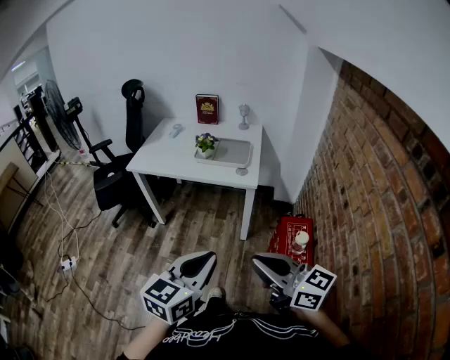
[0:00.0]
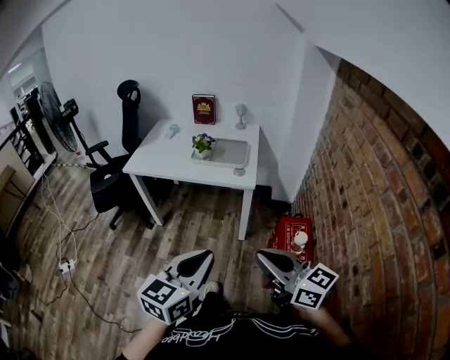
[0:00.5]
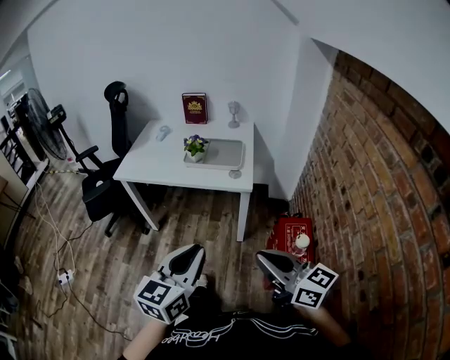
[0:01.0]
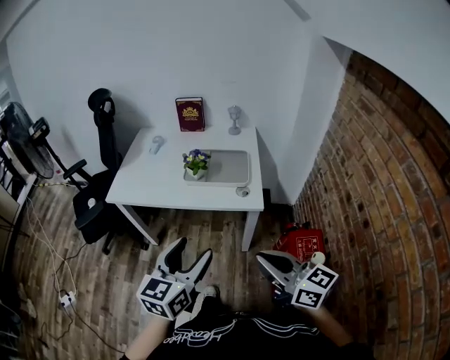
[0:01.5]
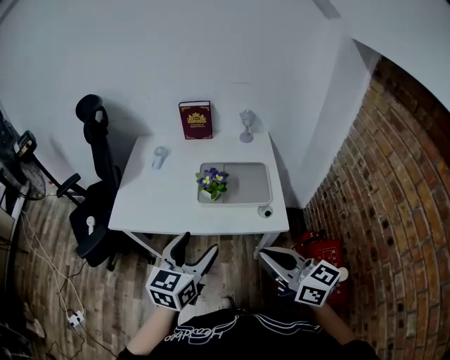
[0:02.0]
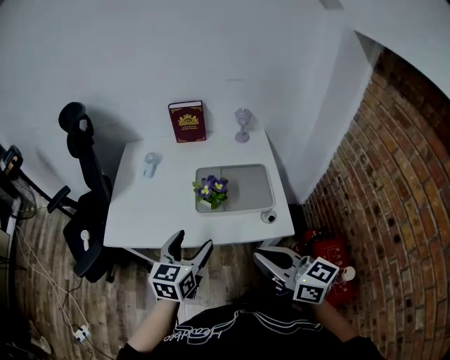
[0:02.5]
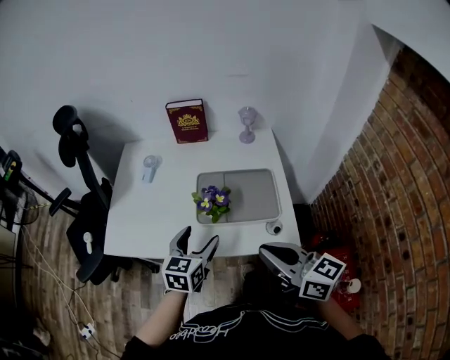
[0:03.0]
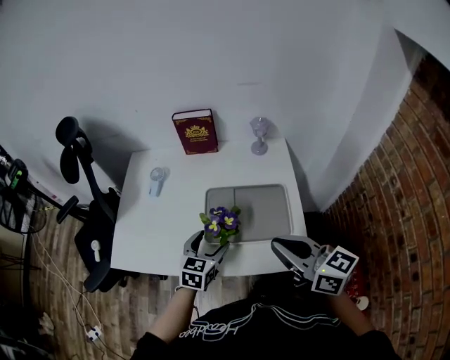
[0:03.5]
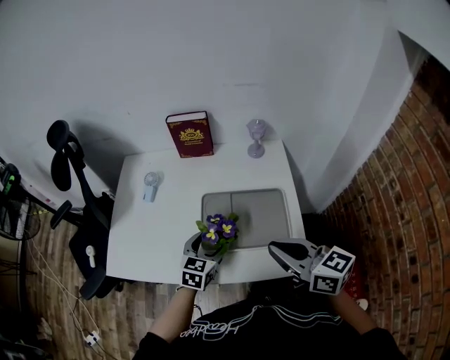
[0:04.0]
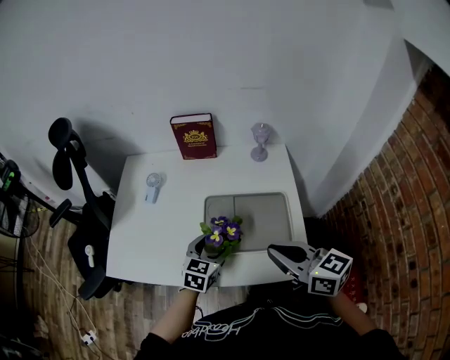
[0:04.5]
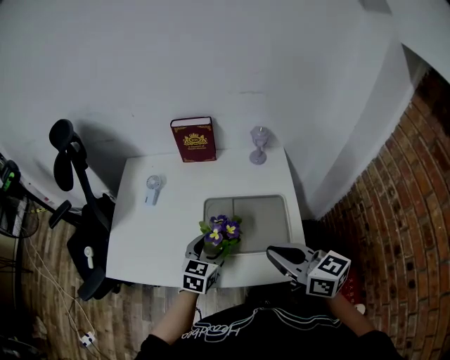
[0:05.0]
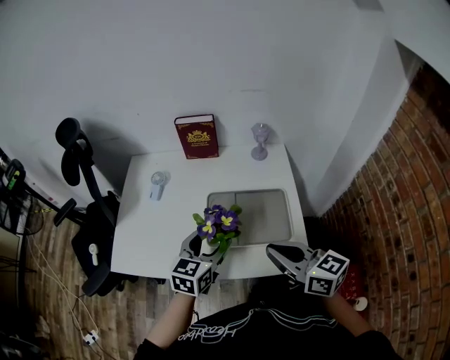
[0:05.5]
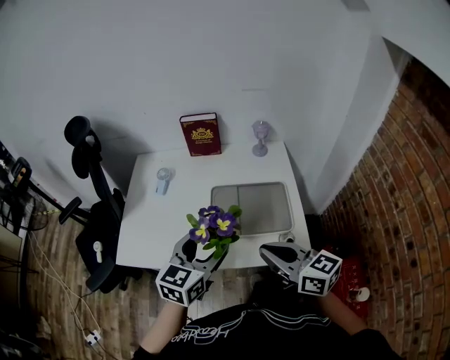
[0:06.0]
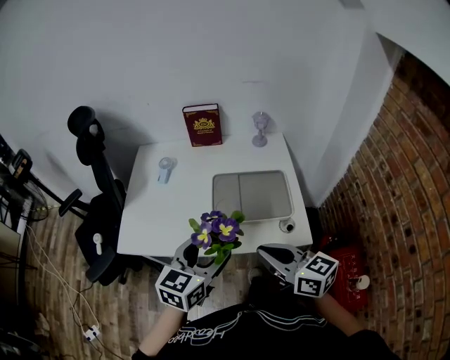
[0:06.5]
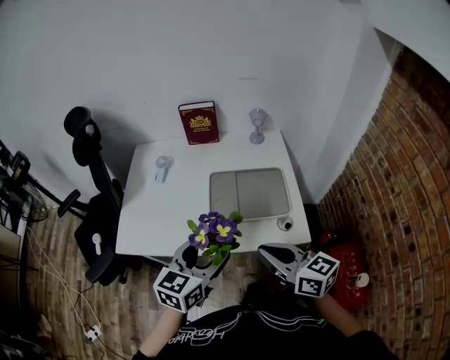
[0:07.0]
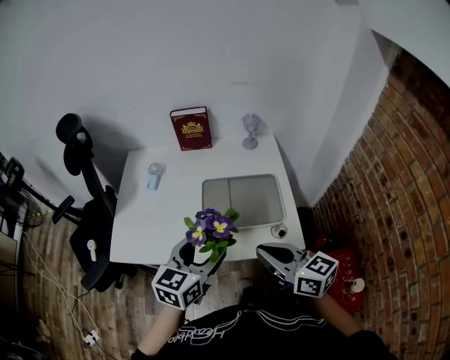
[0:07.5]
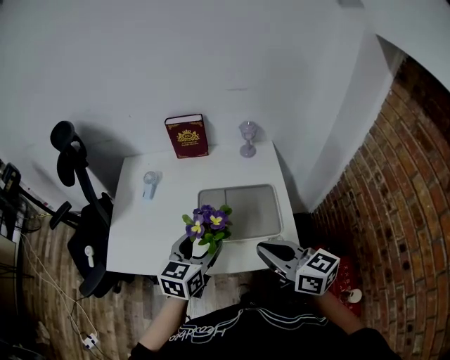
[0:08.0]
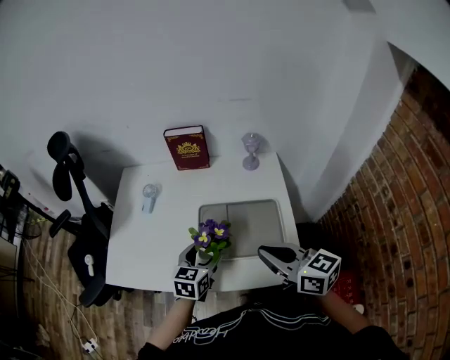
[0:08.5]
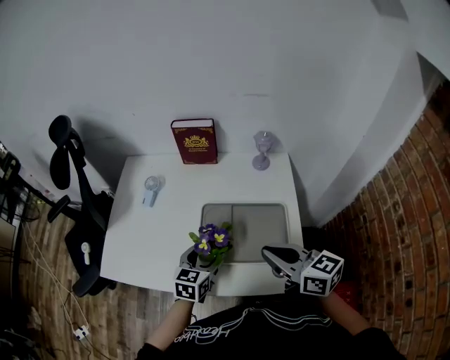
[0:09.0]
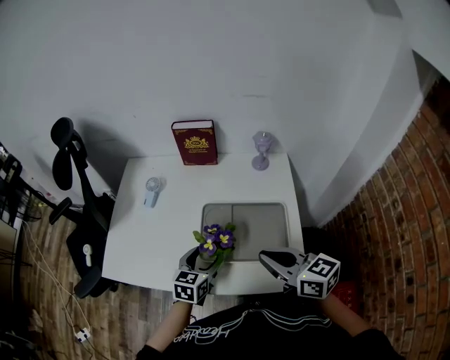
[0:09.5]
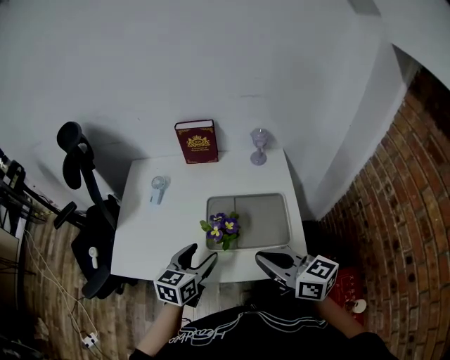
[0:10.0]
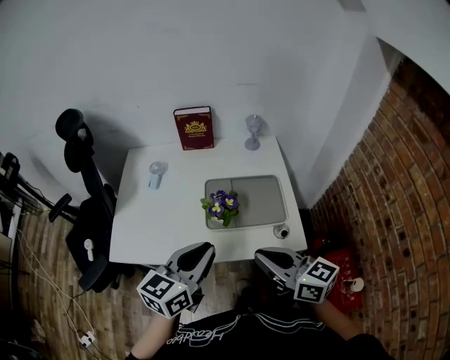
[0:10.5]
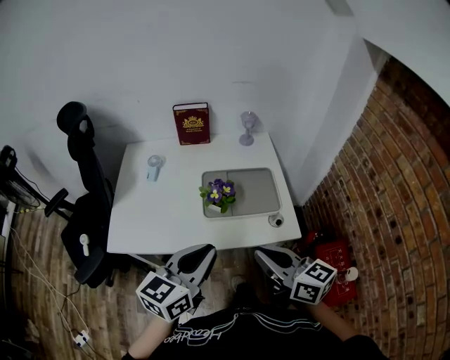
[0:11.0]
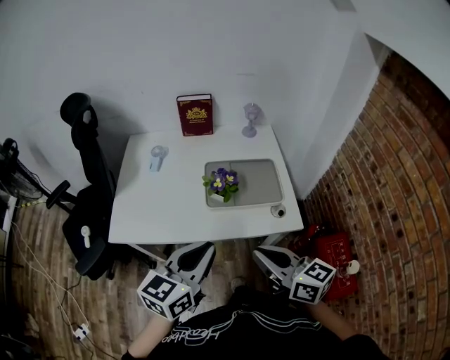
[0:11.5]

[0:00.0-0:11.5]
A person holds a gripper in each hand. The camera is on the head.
0:00.0 to 0:02.0: Both grippers travel together forward, roughly 40 cm. The left gripper opens up.
0:02.0 to 0:04.0: The right gripper travels forward by roughly 20 cm. The left gripper moves forward and downward, approximately 30 cm.
0:04.0 to 0:06.0: The left gripper is displaced upward and backward by approximately 20 cm; the right gripper travels backward and to the left by roughly 10 cm.
0:07.5 to 0:09.5: The left gripper goes roughly 20 cm downward and forward. The right gripper is displaced forward by about 10 cm.
0:09.5 to 0:11.5: The right gripper goes about 20 cm backward and to the left; the left gripper goes some 30 cm backward and upward, swivels some 30 degrees, and closes up.

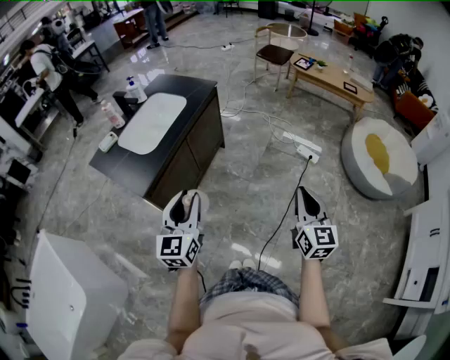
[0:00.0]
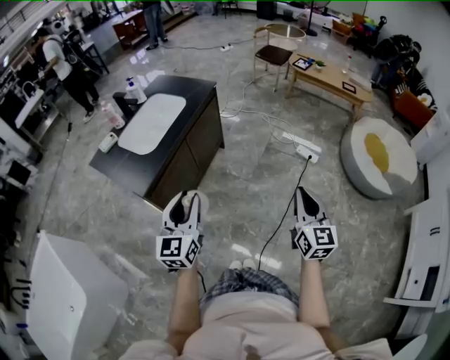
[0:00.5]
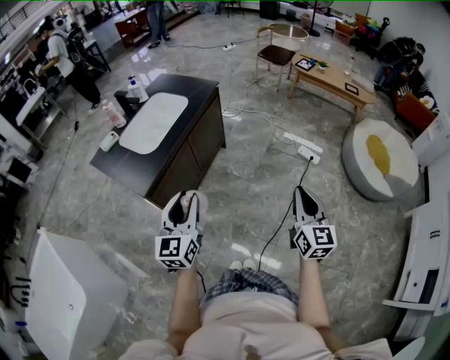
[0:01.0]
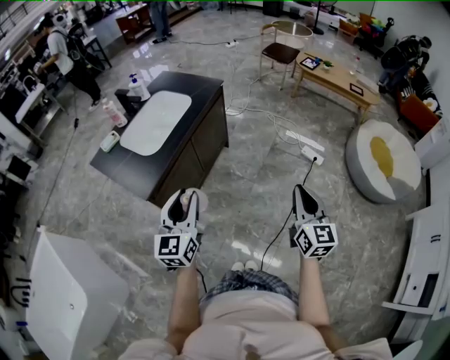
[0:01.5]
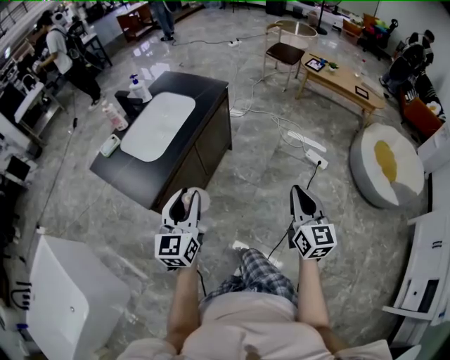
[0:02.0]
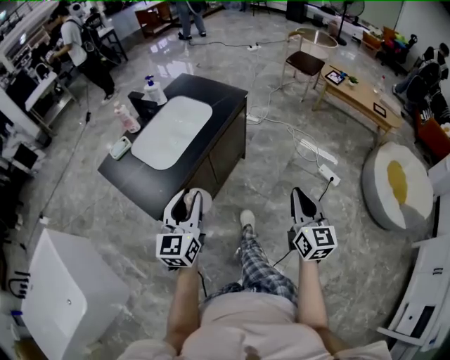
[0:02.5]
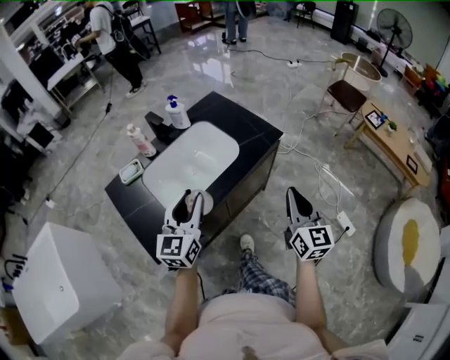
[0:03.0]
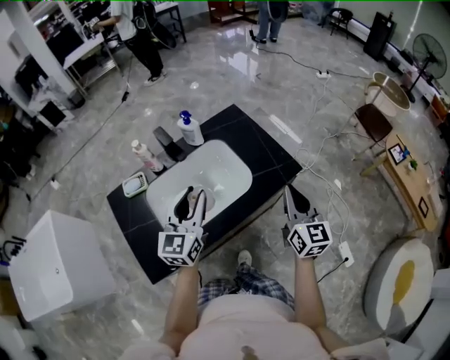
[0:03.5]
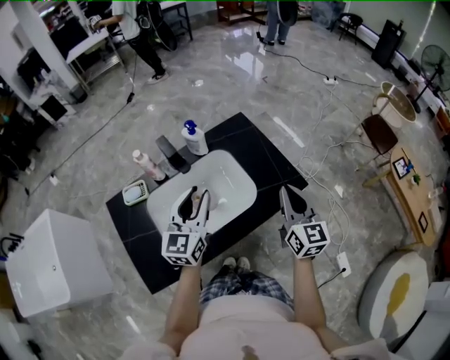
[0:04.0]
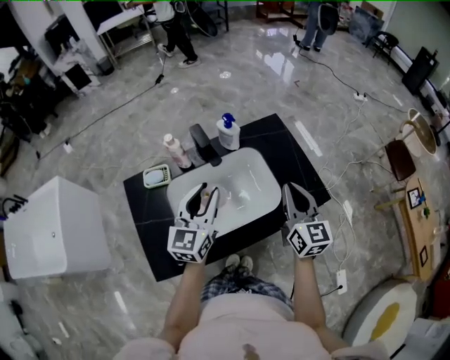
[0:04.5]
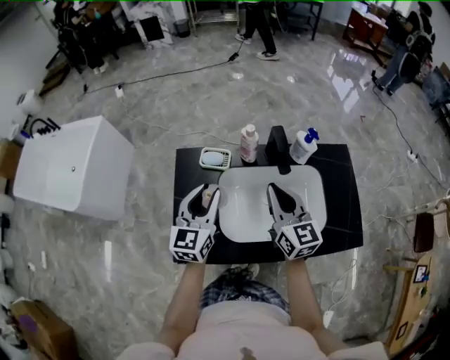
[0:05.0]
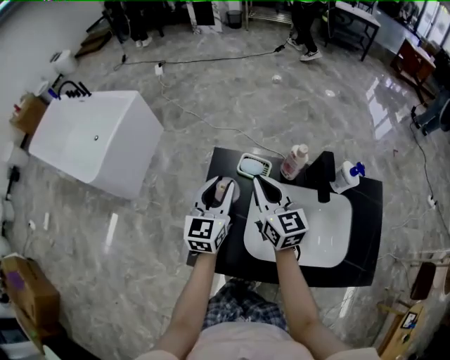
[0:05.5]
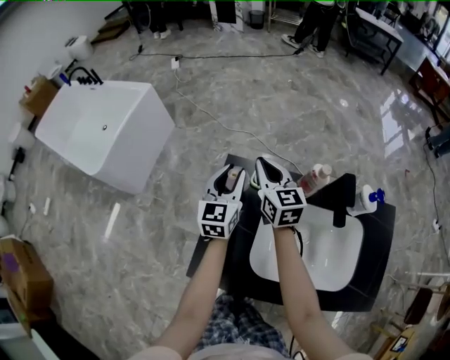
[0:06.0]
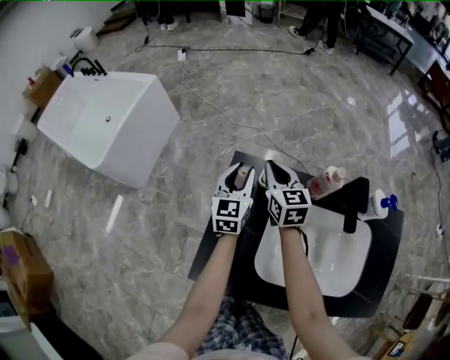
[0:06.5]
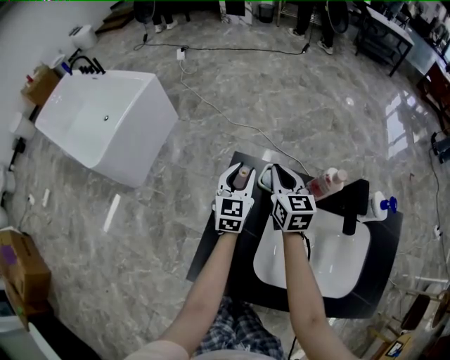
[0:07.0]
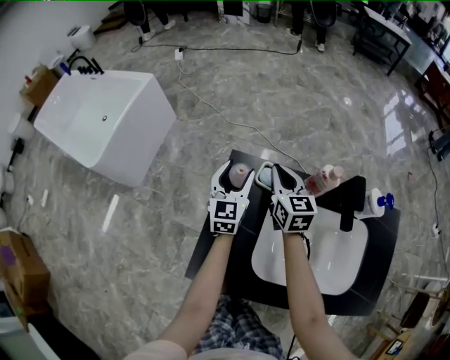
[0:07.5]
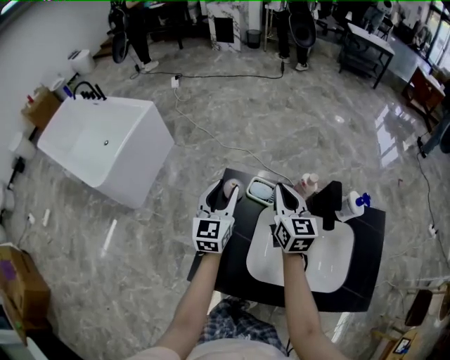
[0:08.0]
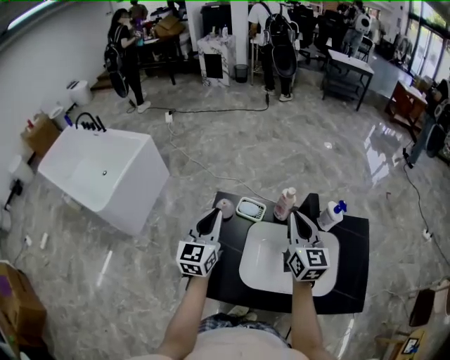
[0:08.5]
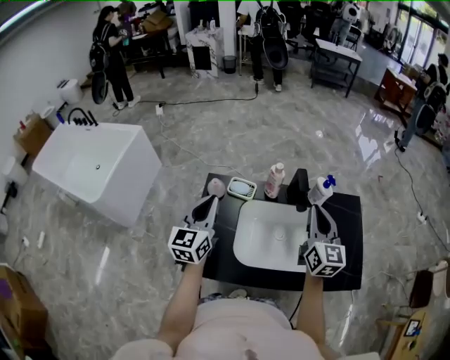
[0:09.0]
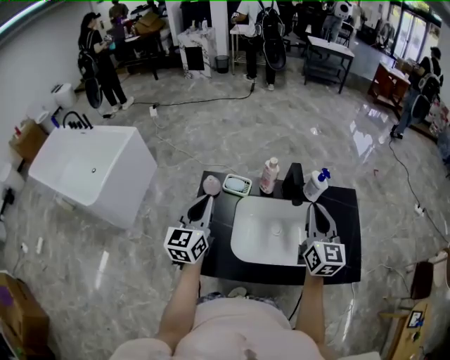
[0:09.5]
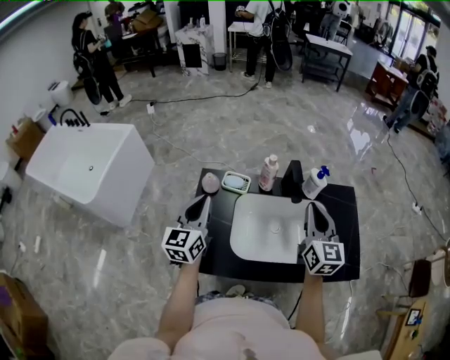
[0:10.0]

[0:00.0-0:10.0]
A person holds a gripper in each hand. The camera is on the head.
0:00.0 to 0:02.0: Both grippers travel together forward and to the left, approximately 10 cm.
0:02.0 to 0:04.0: The two grippers travel together, some 60 cm. The right gripper swivels some 30 degrees. Meanwhile the left gripper rotates approximately 20 degrees.
0:04.0 to 0:06.0: Both grippers are carried approximately 60 cm. The left gripper turns by approximately 50 degrees; the right gripper changes its angle by about 60 degrees.
0:06.0 to 0:08.0: The left gripper shifts by approximately 5 cm; the right gripper is displaced to the right and backward by some 10 cm.
0:08.0 to 0:10.0: The left gripper is displaced backward and upward by about 15 cm, and closes. The right gripper heads backward, to the right and upward, covering about 30 cm.

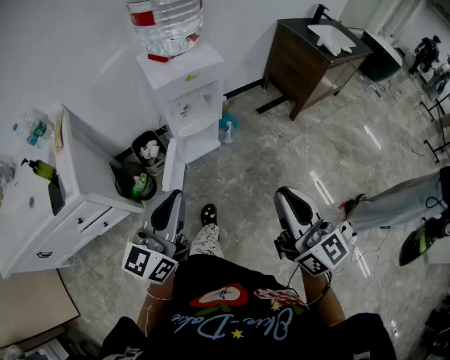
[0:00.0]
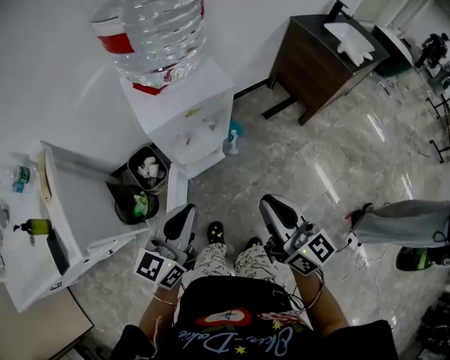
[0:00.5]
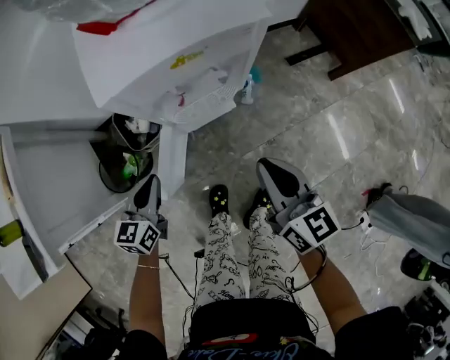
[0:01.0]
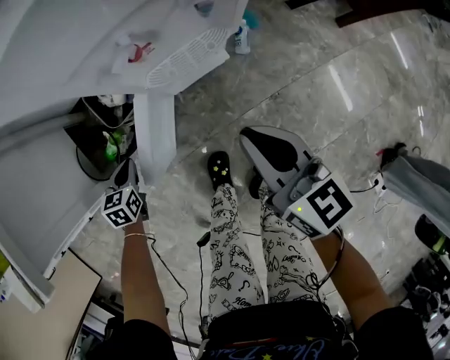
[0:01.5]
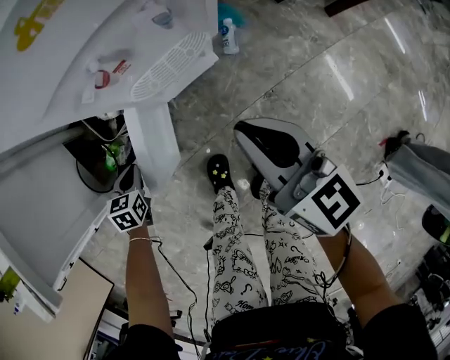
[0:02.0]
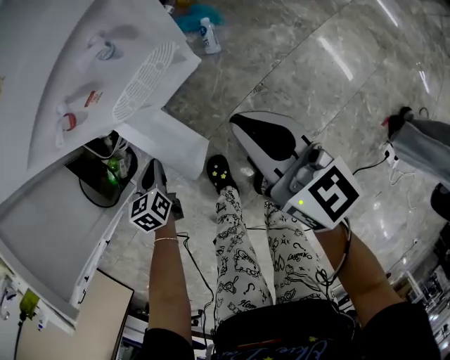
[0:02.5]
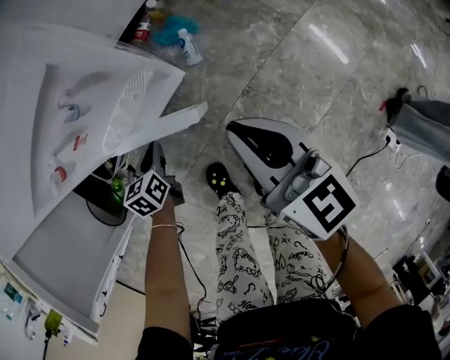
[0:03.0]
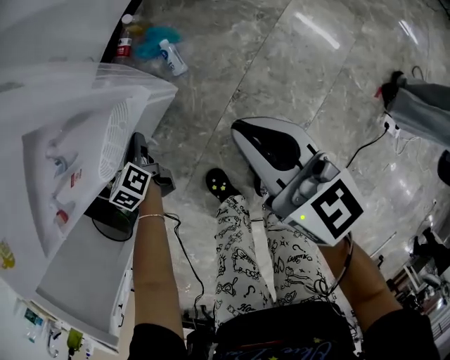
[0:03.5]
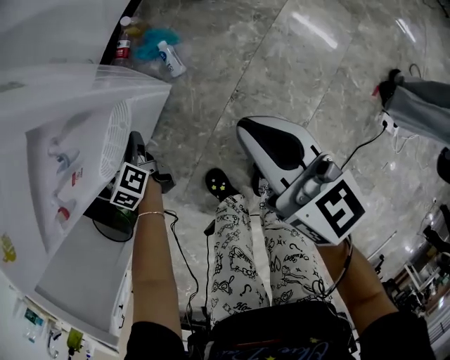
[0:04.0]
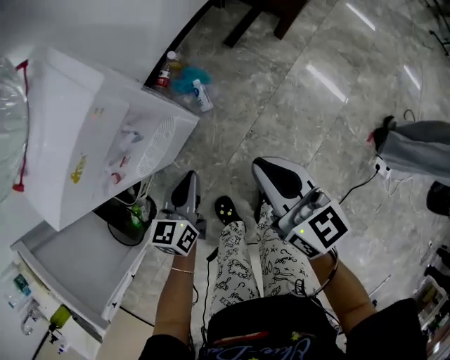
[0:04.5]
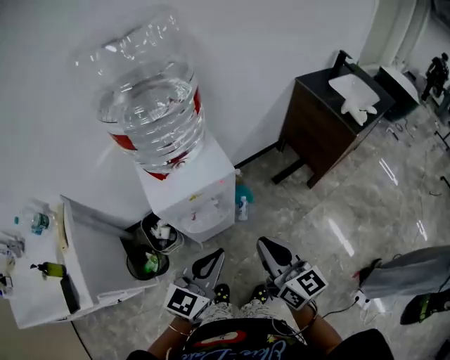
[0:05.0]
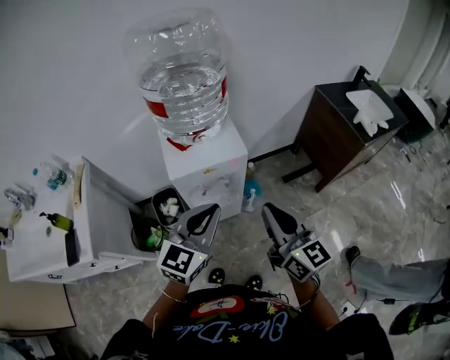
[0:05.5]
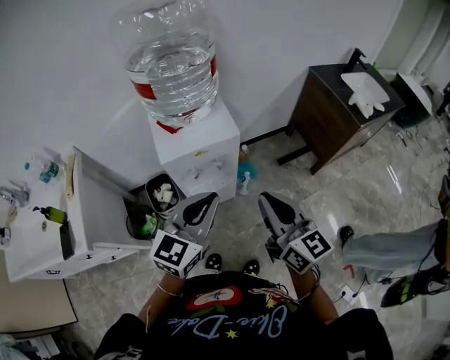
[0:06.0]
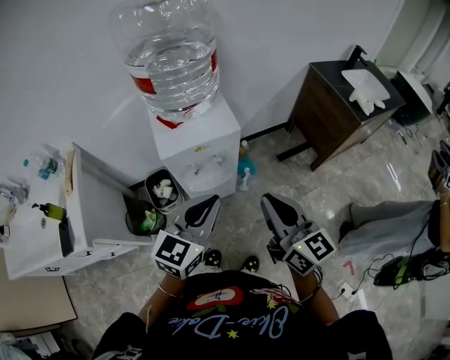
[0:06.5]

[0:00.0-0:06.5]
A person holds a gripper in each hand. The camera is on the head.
0:00.0 to 0:02.0: The right gripper shifts roughly 50 cm forward and downward, and changes its angle by about 20 degrees, while the left gripper shifts some 60 cm downward and forward, and tilts its fingers some 70 degrees downward.
0:02.0 to 0:04.5: The right gripper shifts by about 15 cm, and swivels about 20 degrees, while the left gripper moves some 40 cm, and tips its fingers upward by approximately 30 degrees.
0:04.5 to 0:06.5: The two grippers go roughly 35 cm upward. The left gripper turns by approximately 30 degrees. The right gripper swivels roughly 30 degrees.
